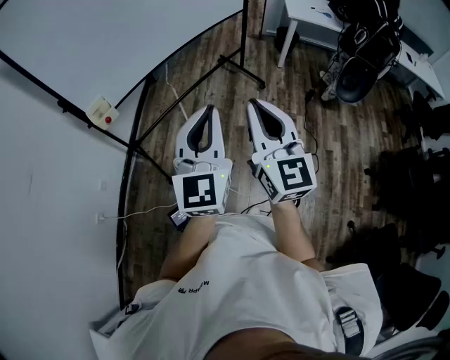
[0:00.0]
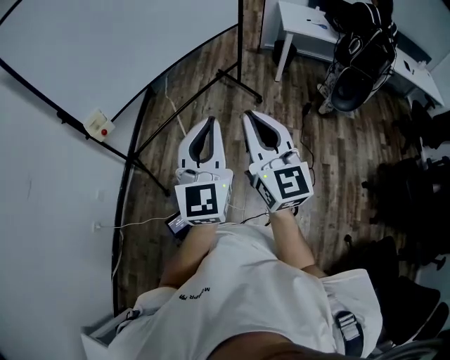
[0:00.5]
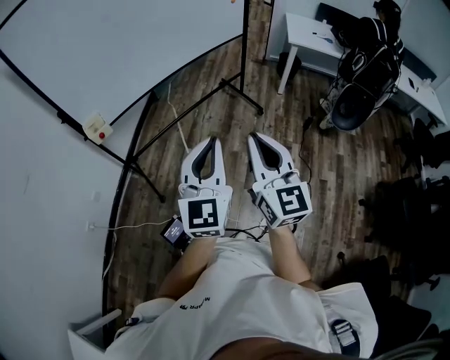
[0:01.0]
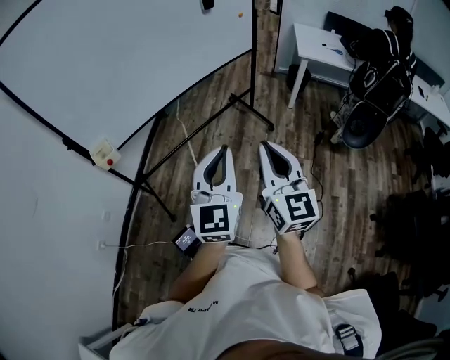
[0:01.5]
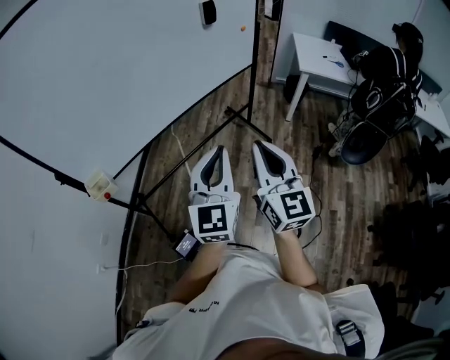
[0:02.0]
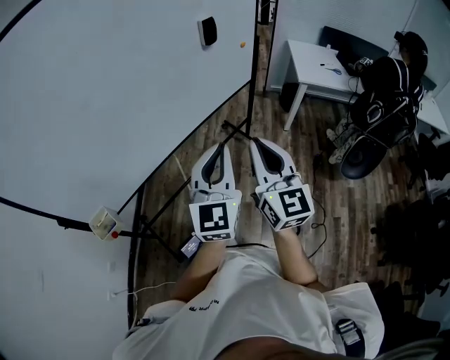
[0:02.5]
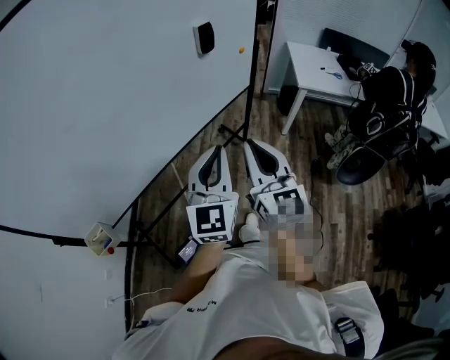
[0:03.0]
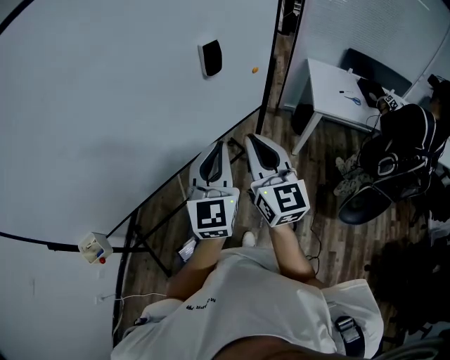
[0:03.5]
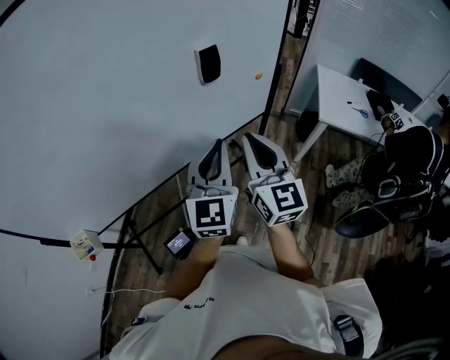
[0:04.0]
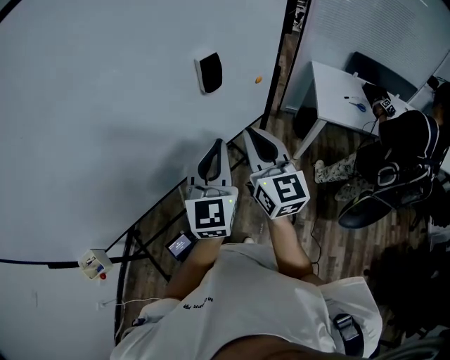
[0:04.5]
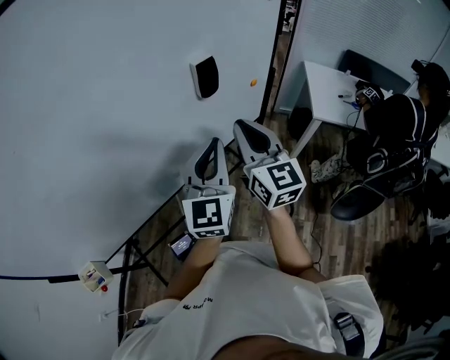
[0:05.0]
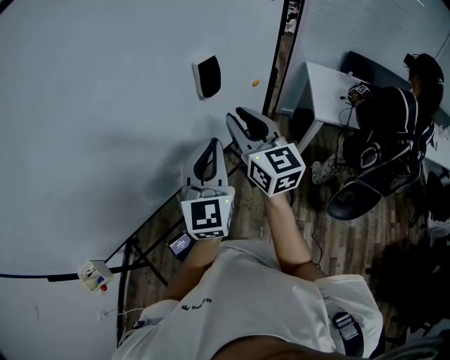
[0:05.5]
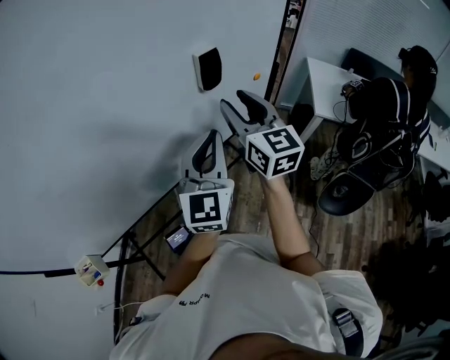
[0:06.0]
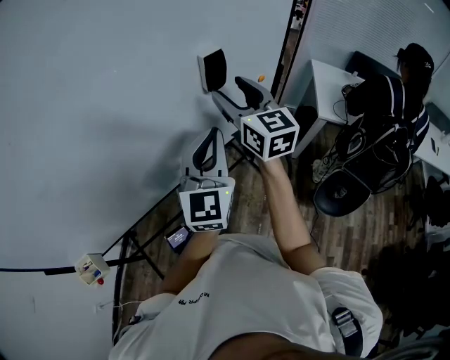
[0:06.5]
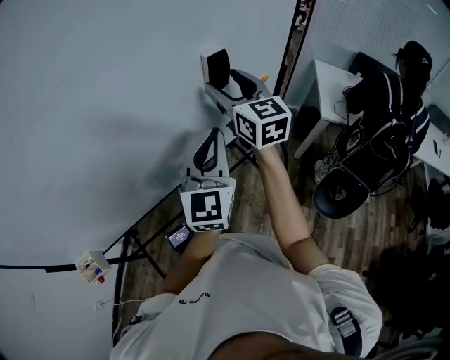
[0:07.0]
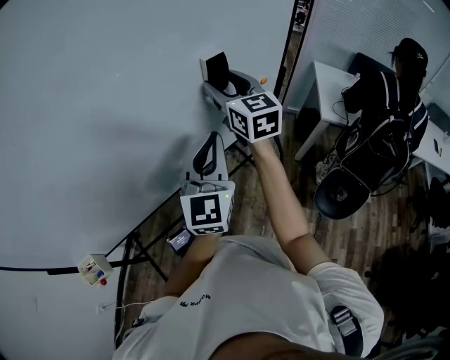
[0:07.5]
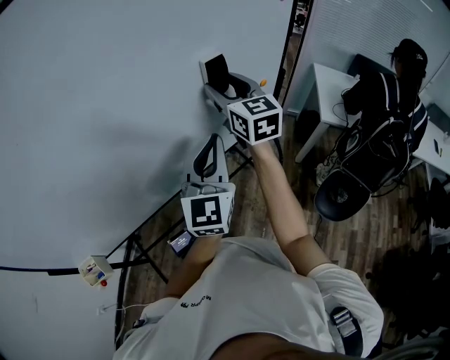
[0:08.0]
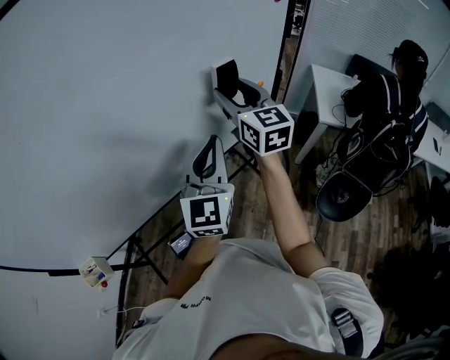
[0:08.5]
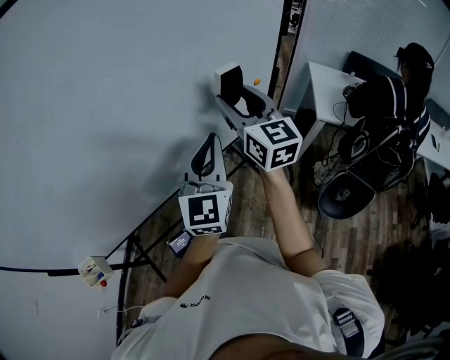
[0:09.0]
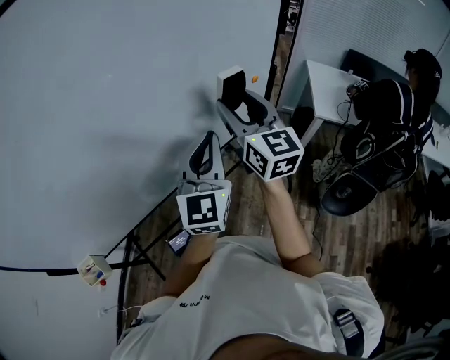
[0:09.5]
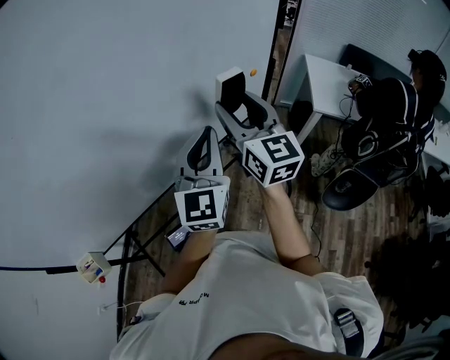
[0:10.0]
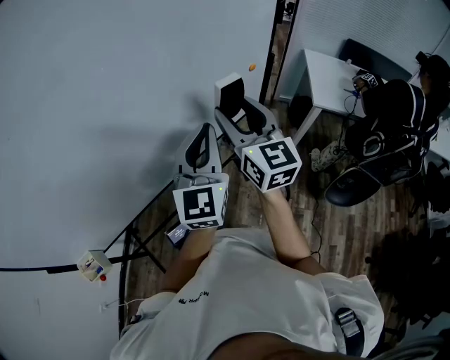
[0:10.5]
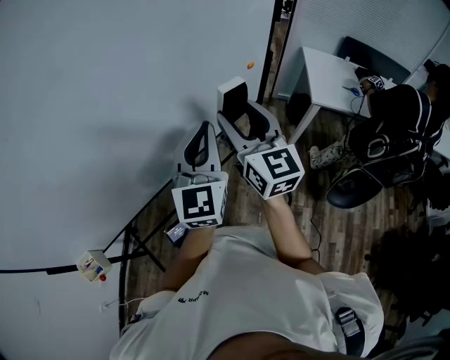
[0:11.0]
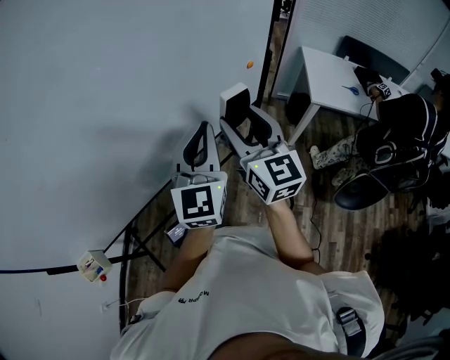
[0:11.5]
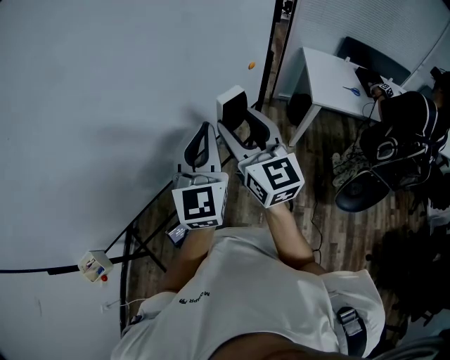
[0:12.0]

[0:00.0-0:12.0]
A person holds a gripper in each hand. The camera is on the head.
0:00.0 to 0:02.0: The grippers both shift forward by about 25 cm.
0:02.0 to 0:04.0: Both grippers travel together forward, about 35 cm.
0:04.0 to 0:06.0: The left gripper shifts approximately 5 cm forward. Meanwhile the right gripper goes approximately 15 cm forward, and opens its fingers.
0:06.0 to 0:08.0: The right gripper shifts approximately 10 cm forward.
0:08.0 to 0:10.0: The right gripper goes approximately 10 cm backward.
0:10.0 to 0:12.0: The right gripper changes place by roughly 5 cm.

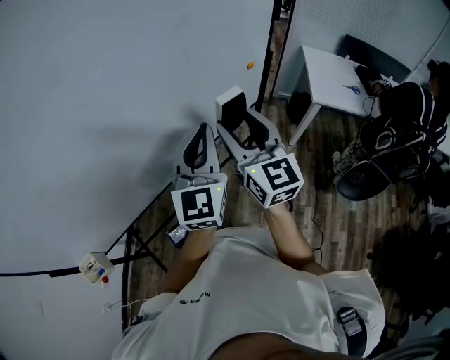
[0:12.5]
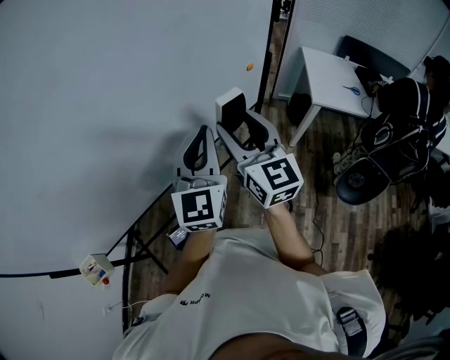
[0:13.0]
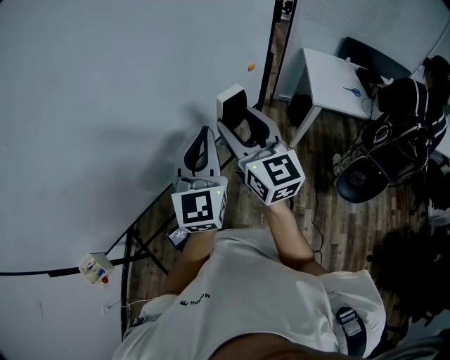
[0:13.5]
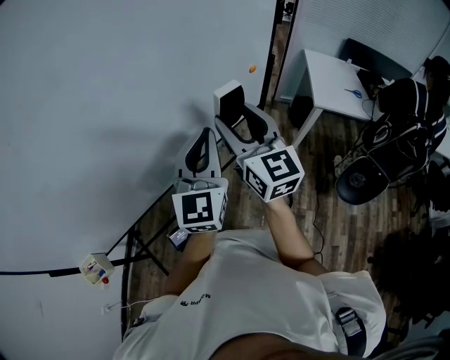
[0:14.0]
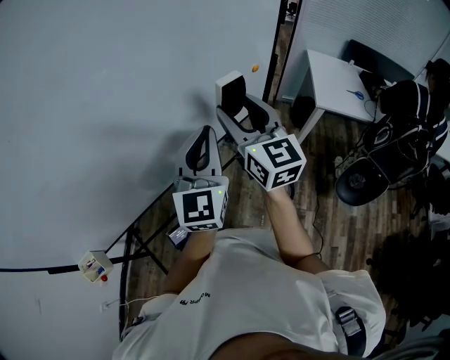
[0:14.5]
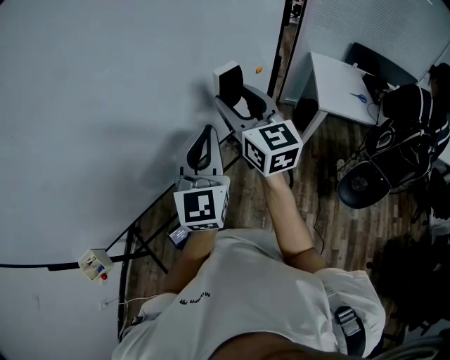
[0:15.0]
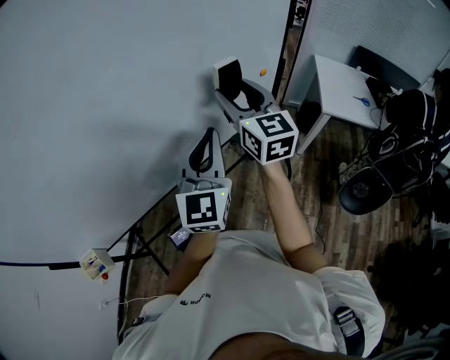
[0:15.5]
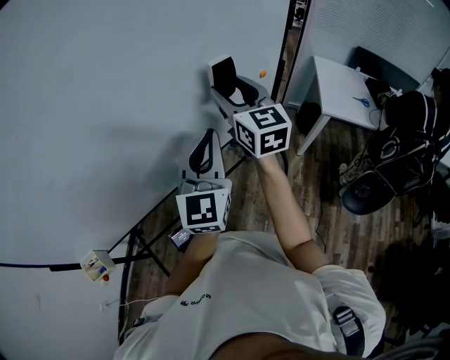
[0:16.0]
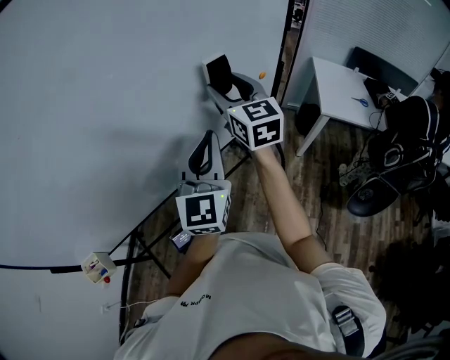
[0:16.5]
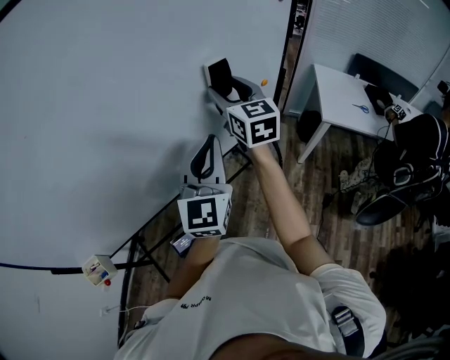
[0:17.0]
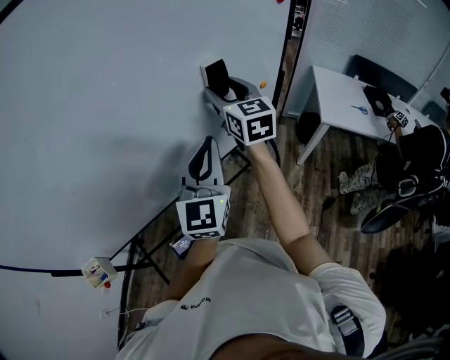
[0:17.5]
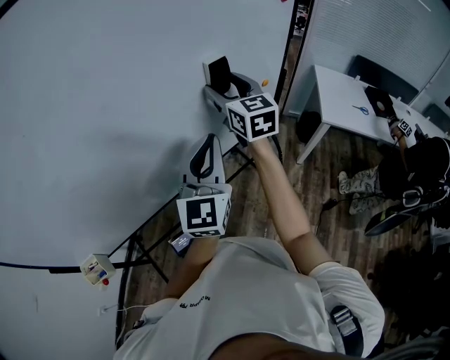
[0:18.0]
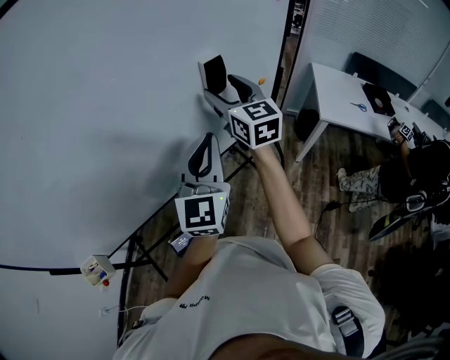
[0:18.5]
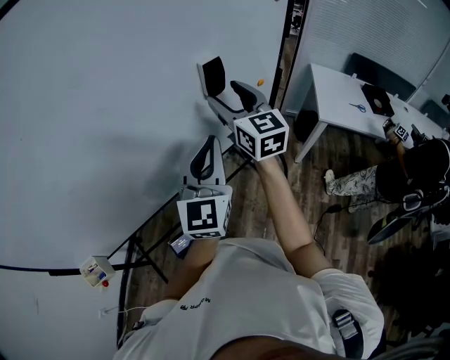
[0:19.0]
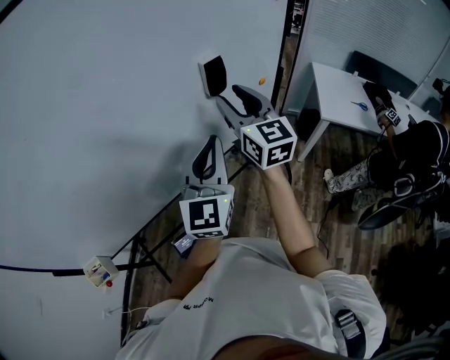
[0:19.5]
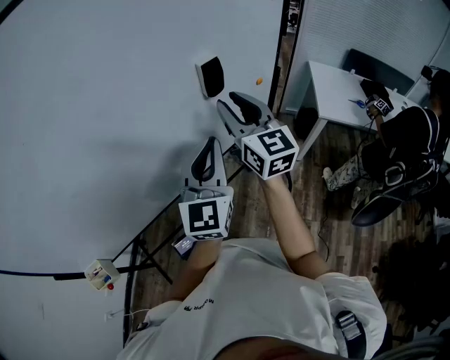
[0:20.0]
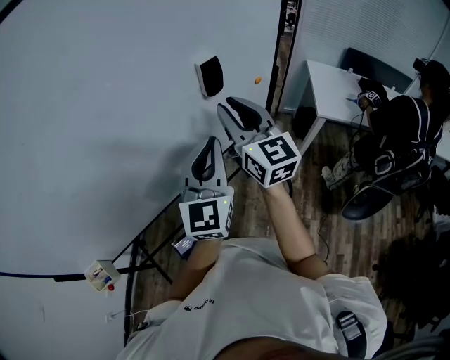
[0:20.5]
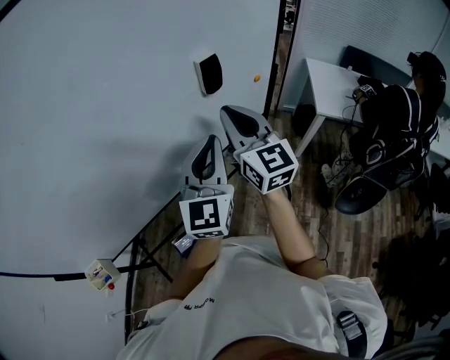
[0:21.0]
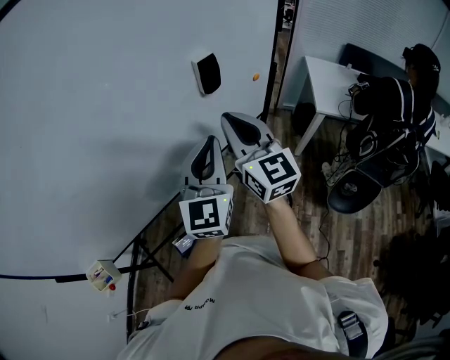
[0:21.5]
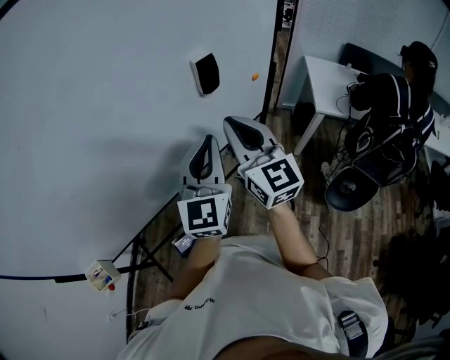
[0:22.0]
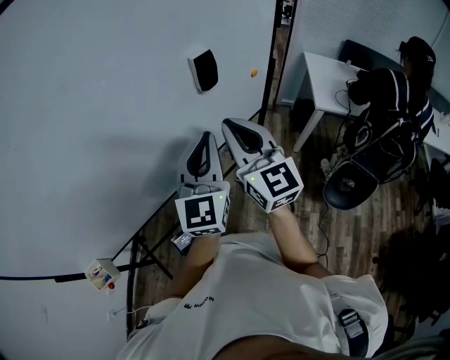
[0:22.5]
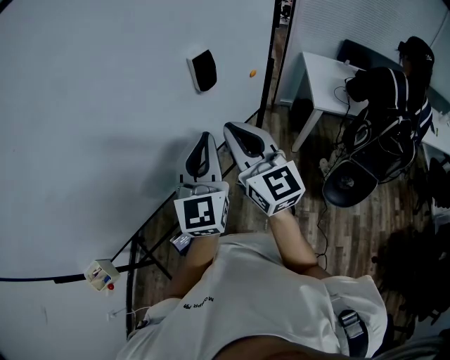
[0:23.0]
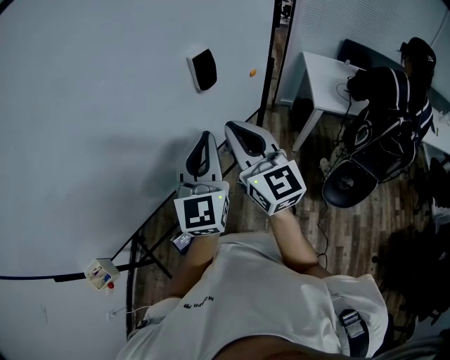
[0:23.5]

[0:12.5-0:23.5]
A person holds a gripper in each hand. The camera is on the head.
0:12.5 to 0:14.5: The grippers stay close to where they were, moving slightly.
0:14.5 to 0:16.0: The right gripper moves forward, some 5 cm.
0:16.0 to 0:18.0: The right gripper changes place by roughly 5 cm.
0:18.0 to 0:20.0: The right gripper travels backward by about 10 cm, and closes up.
0:20.0 to 0:21.5: The right gripper shifts some 5 cm backward, and closes up.
0:21.5 to 0:23.5: There are only small adjustments of the grippers.

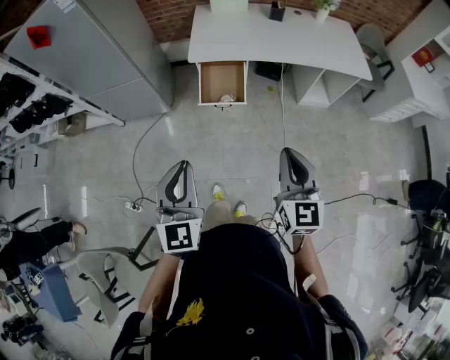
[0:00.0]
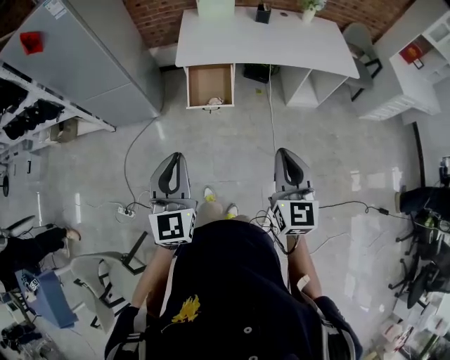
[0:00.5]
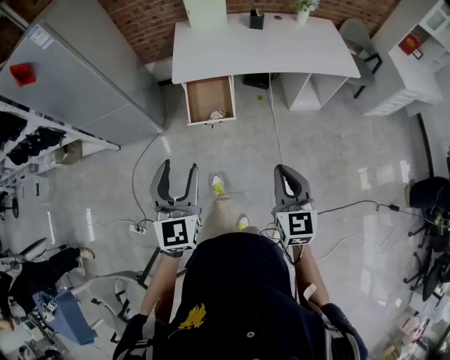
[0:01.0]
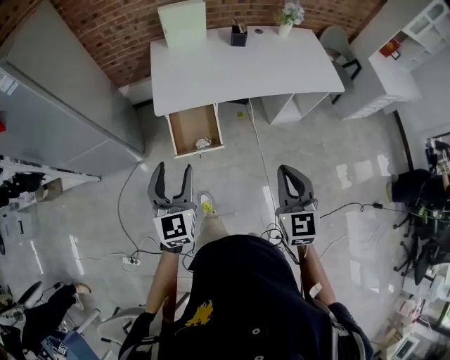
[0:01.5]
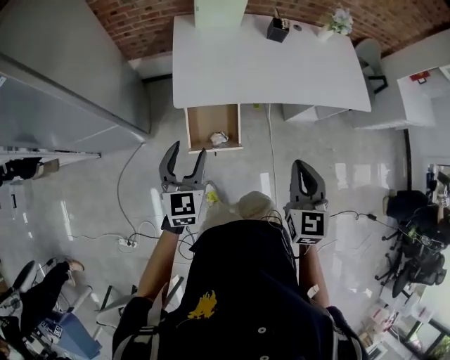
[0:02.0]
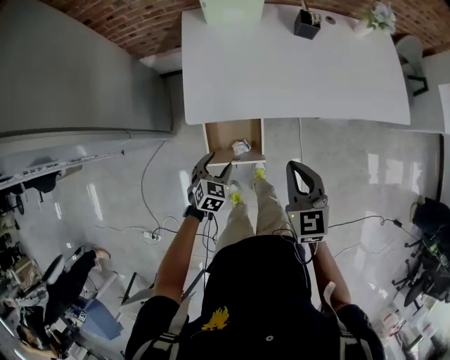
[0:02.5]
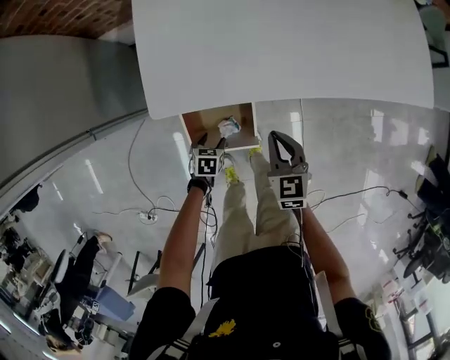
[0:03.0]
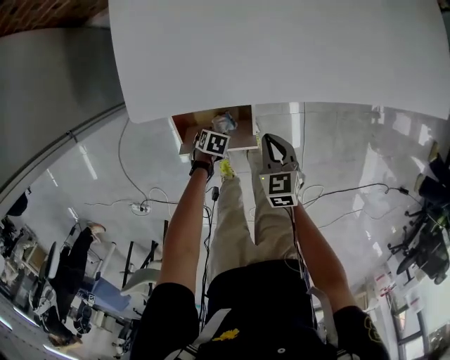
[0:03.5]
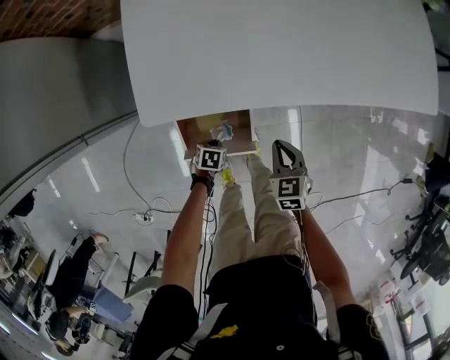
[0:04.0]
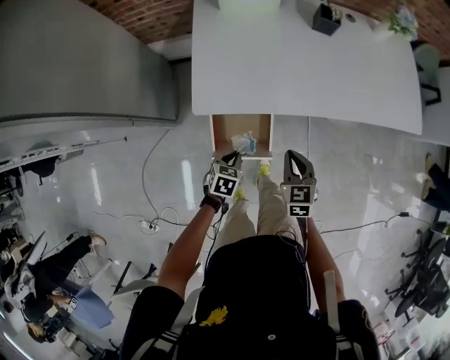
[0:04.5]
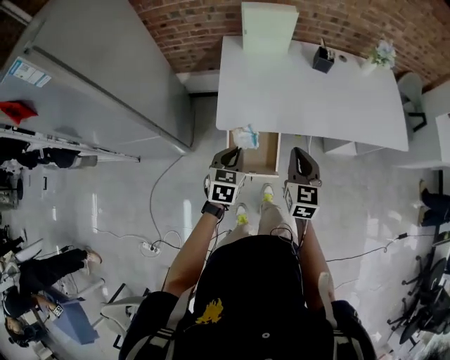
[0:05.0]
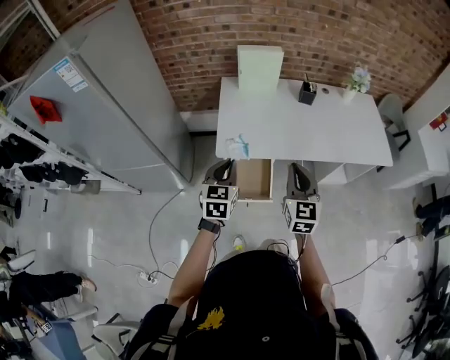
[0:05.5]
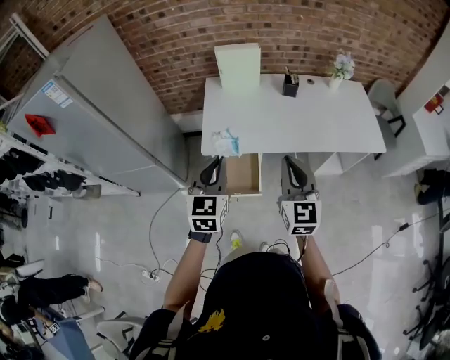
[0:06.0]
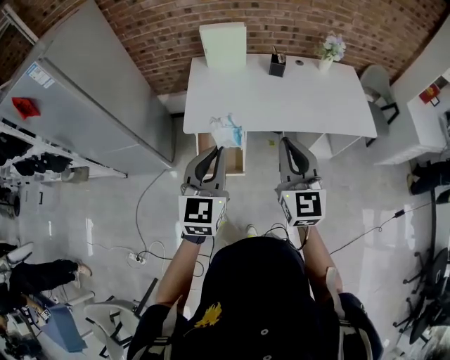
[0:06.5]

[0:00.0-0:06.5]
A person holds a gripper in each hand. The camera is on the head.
0:00.0 to 0:02.0: Both grippers move forward, about 40 cm. The left gripper opens its fingers.
0:02.0 to 0:04.5: The grippers both shift downward by approximately 30 cm. The left gripper tips its fingers downward by some 40 degrees, and closes up, while the right gripper rotates approximately 20 degrees.
0:04.5 to 0:06.5: The grippers both shift upward by approximately 40 cm. The left gripper tips its fingers upward by some 50 degrees; the right gripper angles its fingers upward, by about 40 degrees.
